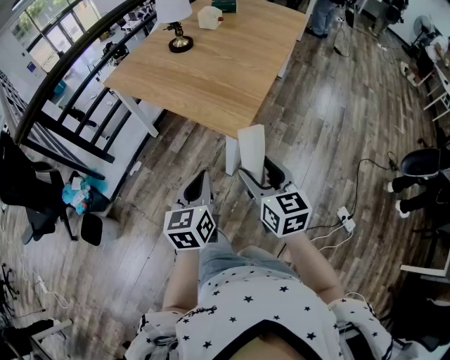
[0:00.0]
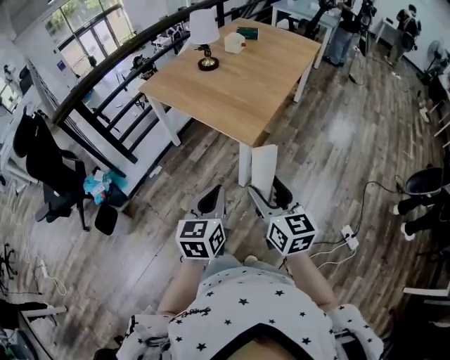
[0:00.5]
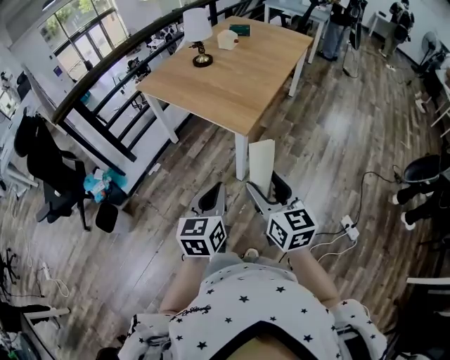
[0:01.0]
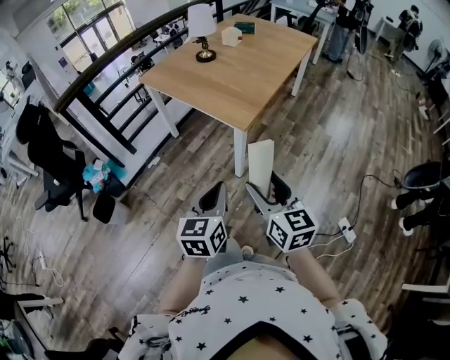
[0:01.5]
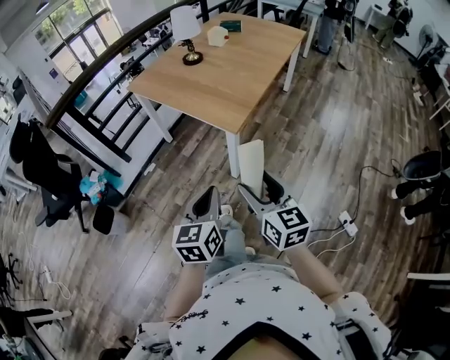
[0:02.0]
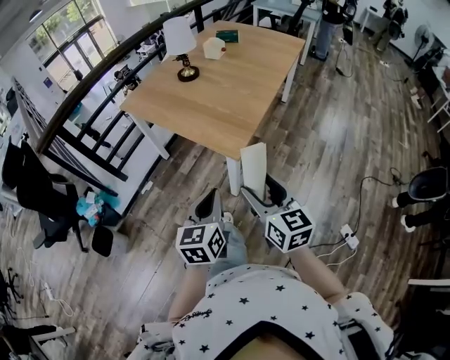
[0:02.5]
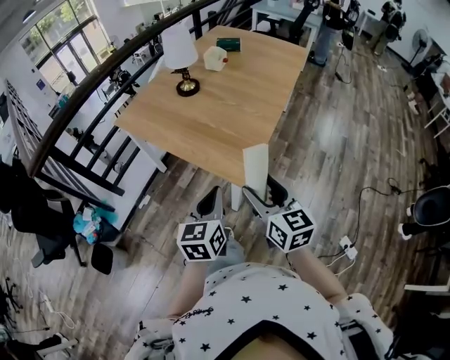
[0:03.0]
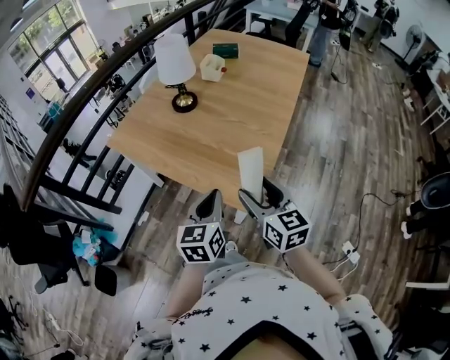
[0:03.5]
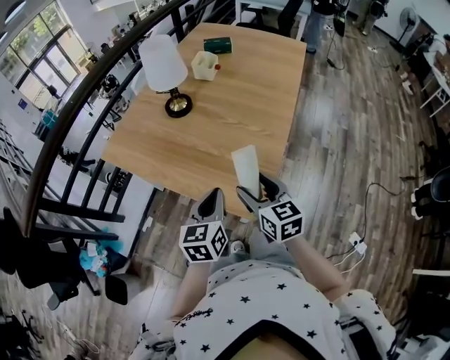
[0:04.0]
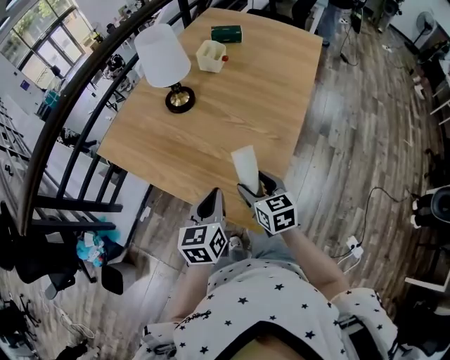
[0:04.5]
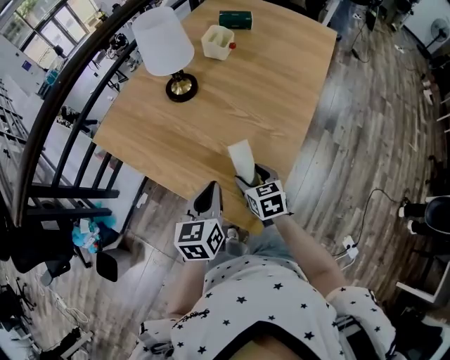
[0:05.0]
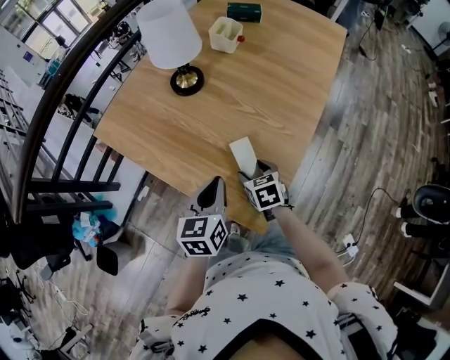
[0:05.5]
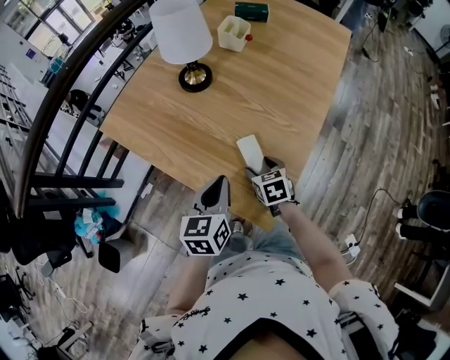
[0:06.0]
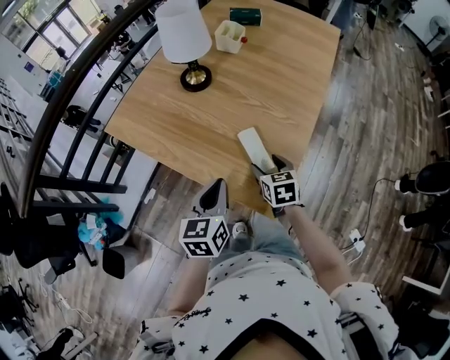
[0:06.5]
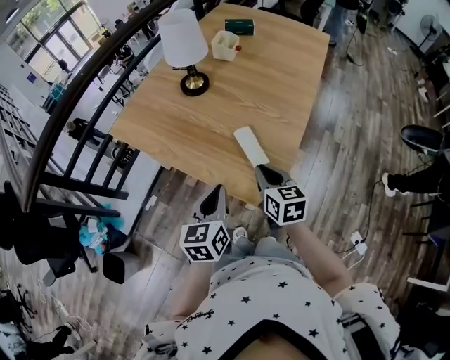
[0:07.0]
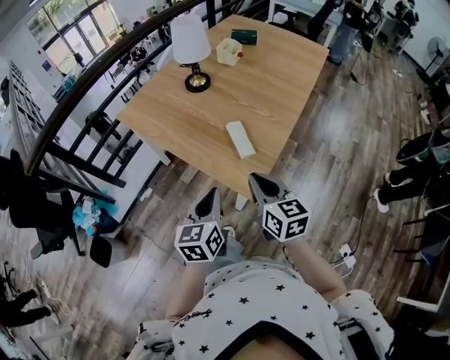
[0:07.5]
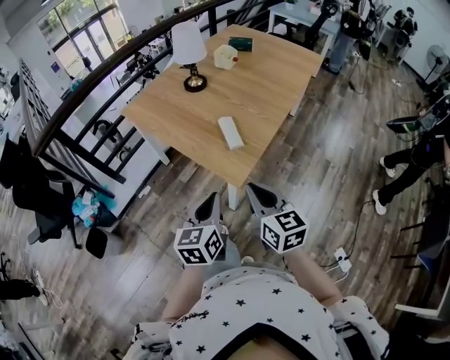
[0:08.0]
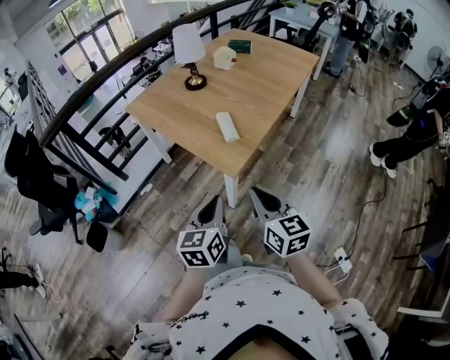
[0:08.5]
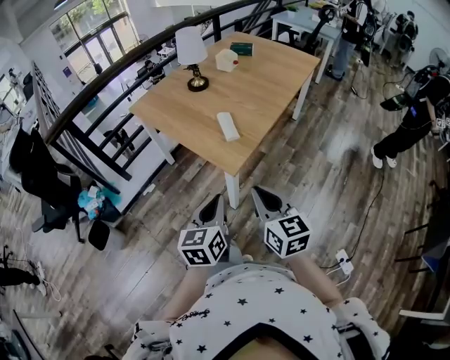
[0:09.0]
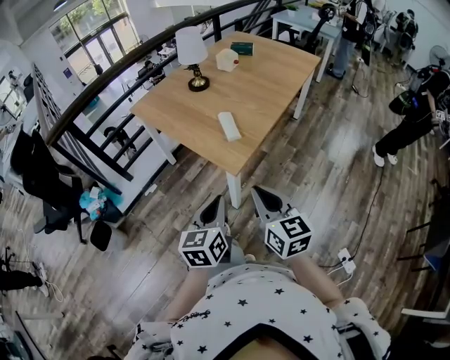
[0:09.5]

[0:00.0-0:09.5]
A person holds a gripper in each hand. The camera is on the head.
0.0 to 2.0 s: The grippers both shift backward and upward by approximately 20 cm.
2.0 to 4.0 s: Both grippers are carried forward, some 40 cm.
4.0 to 5.5 s: The right gripper heads downward and forward, covering approximately 20 cm, and swivels roughly 30 degrees. Meanwhile the left gripper heads forward and downward, covering some 10 cm.
5.5 to 7.5 s: The right gripper moves backward and upward, approximately 30 cm, angles its fingers upward, by approximately 30 degrees, and closes its fingers. The left gripper goes about 20 cm backward.
7.5 to 9.5 s: The two grippers go about 20 cm backward.

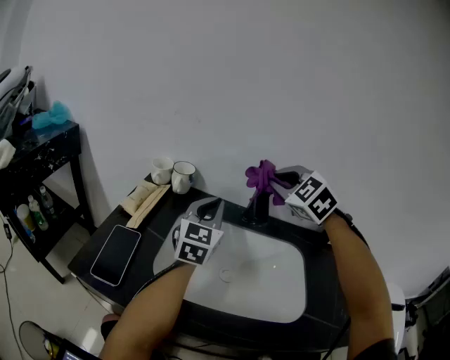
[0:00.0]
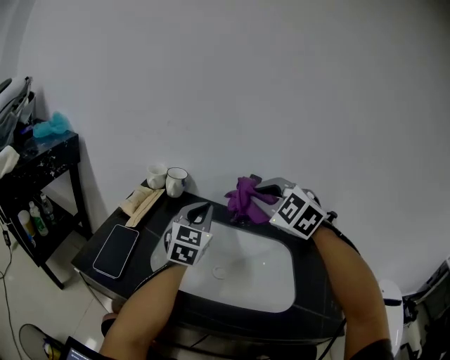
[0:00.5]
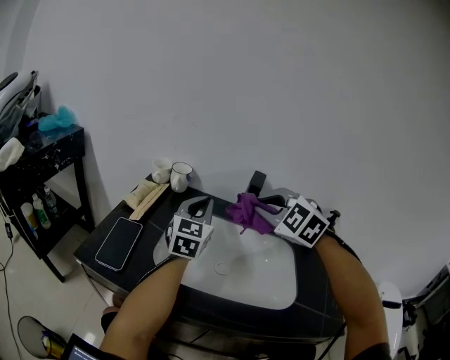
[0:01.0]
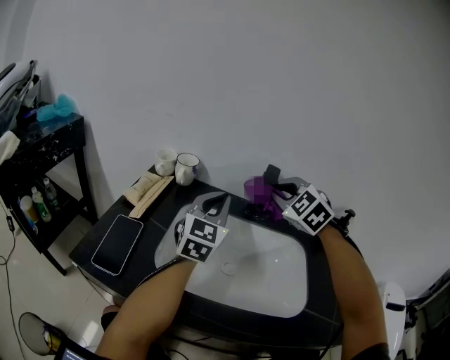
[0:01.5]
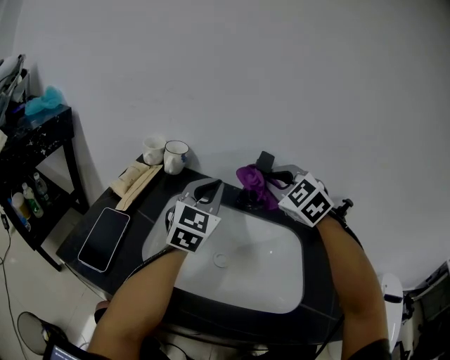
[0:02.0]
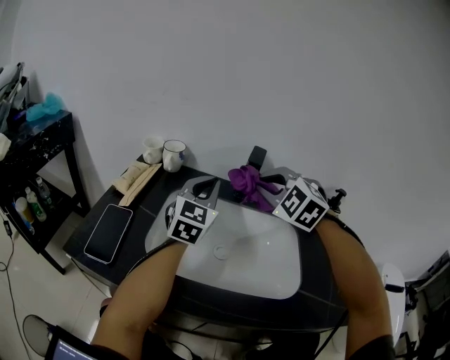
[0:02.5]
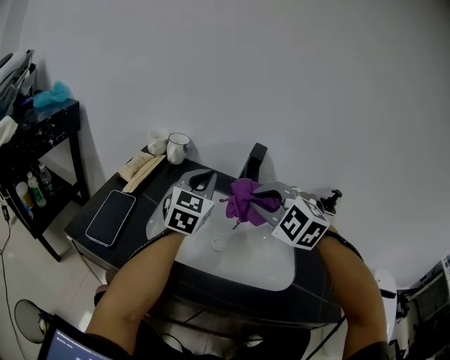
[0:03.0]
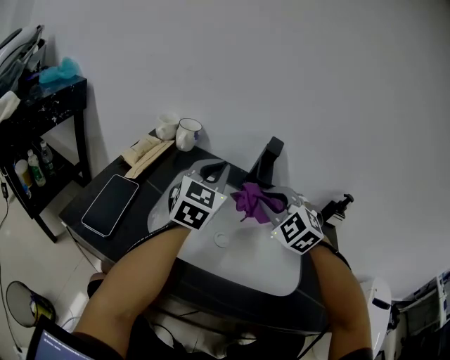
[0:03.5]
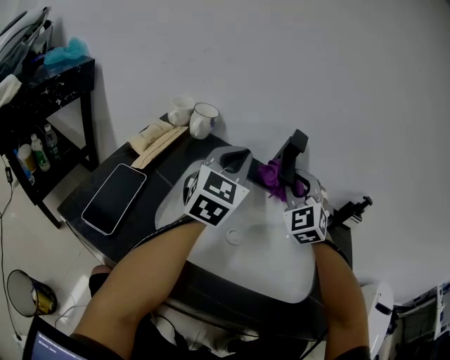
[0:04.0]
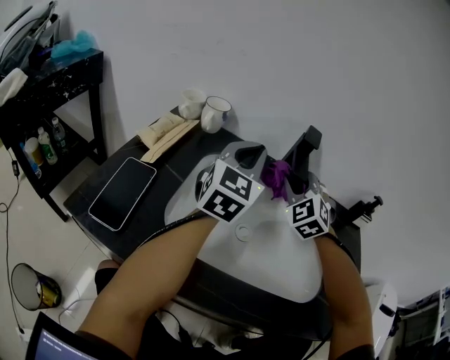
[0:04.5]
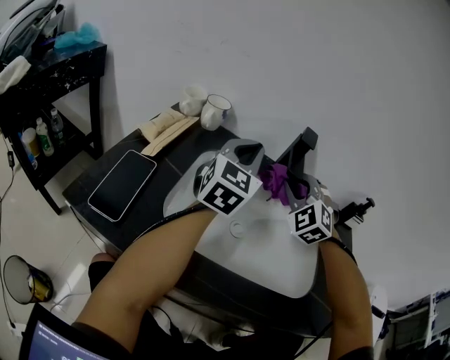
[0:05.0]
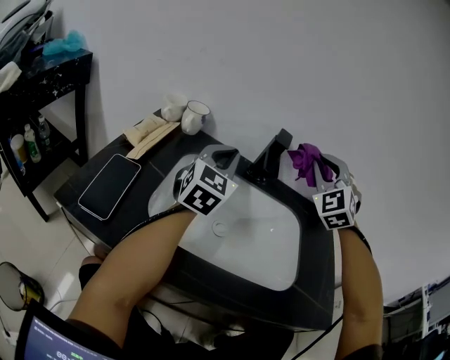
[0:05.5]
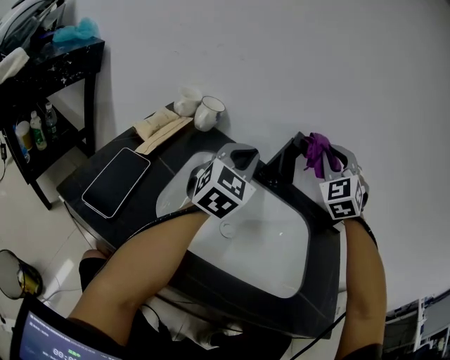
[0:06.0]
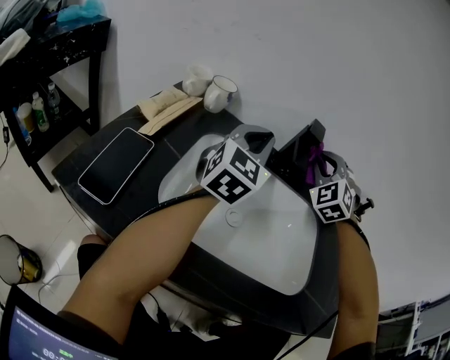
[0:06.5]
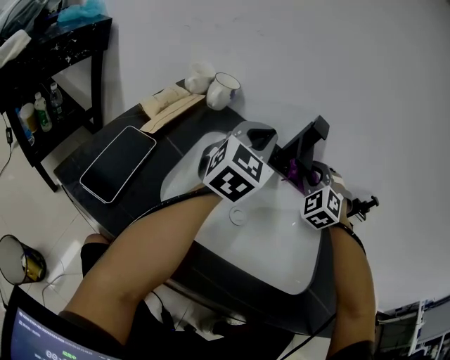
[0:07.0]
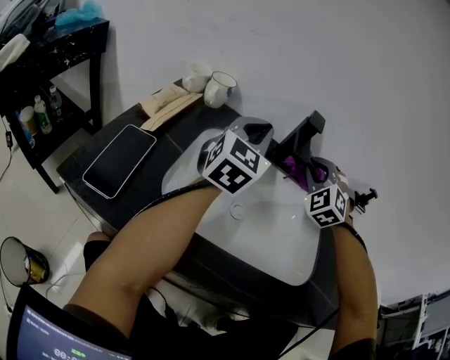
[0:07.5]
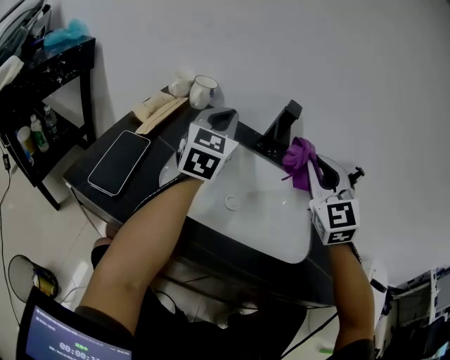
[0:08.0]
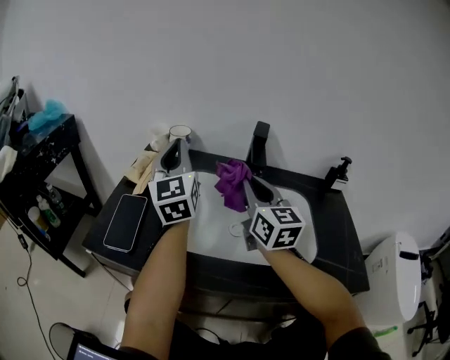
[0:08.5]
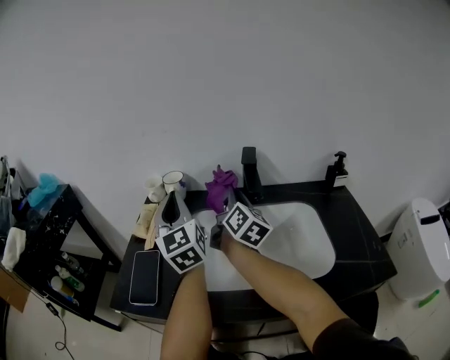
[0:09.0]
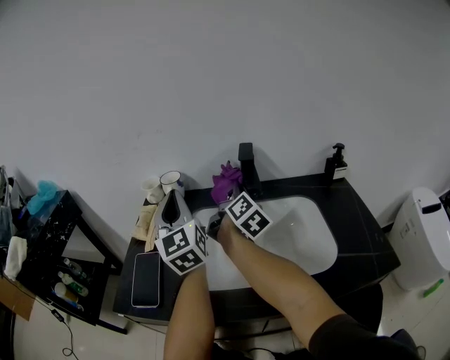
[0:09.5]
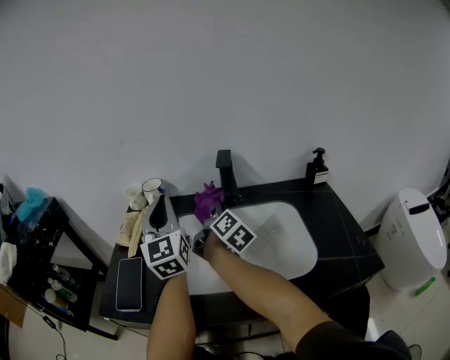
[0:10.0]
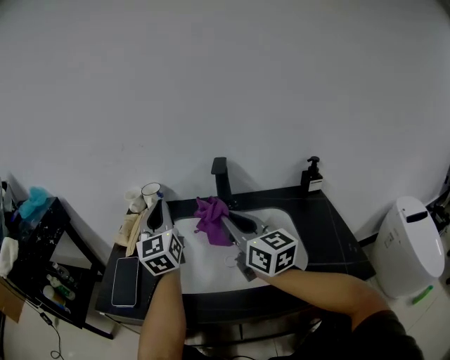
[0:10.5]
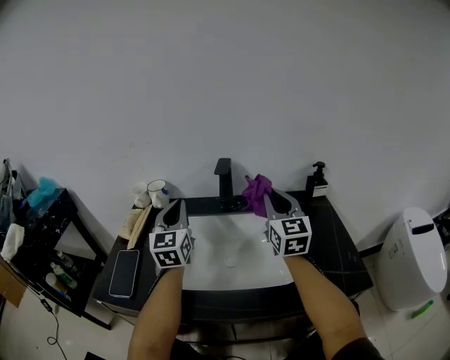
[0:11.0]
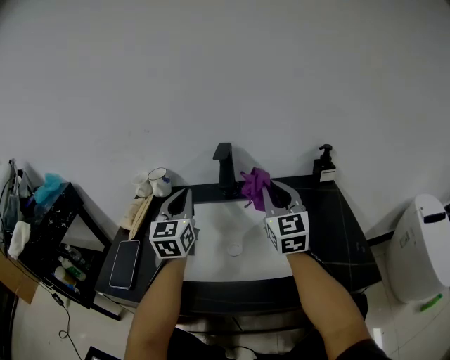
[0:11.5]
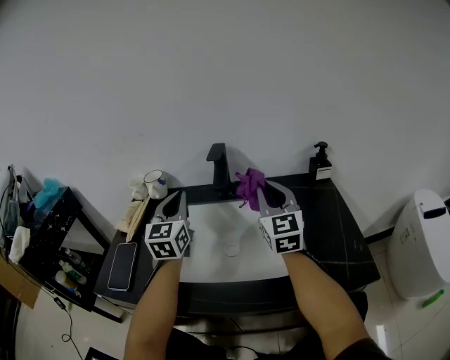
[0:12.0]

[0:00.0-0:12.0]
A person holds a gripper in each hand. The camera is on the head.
0.0 to 2.0 s: The right gripper shifts about 5 cm downward, and travels backward and back again, approximately 10 cm each way.
2.0 to 4.0 s: The right gripper shifts roughly 5 cm downward, reaches approximately 15 cm backward, then returns, and changes its angle by some 20 degrees.
4.0 to 6.0 s: The right gripper moves upward, some 10 cm.
6.0 to 8.0 s: The right gripper shifts some 15 cm backward, goes downward and returns, some 15 cm each way, and swivels some 30 degrees. Meanwhile the left gripper goes approximately 5 cm to the left.
8.0 to 10.0 s: The left gripper ends up roughly 5 cm from where it was. Meanwhile the right gripper heads downward, forward and to the left, covering roughly 15 cm, and twists some 100 degrees clockwise, seen from behind.
10.0 to 12.0 s: The right gripper goes approximately 15 cm to the right, upward and backward, and rotates around the line of its fingers by roughly 70 degrees, counterclockwise from behind, while the left gripper is displaced to the right by about 5 cm.

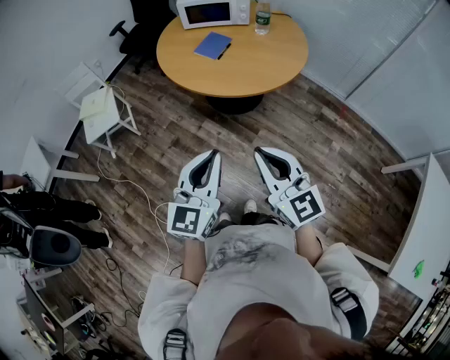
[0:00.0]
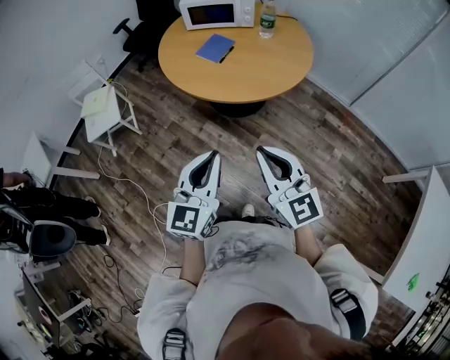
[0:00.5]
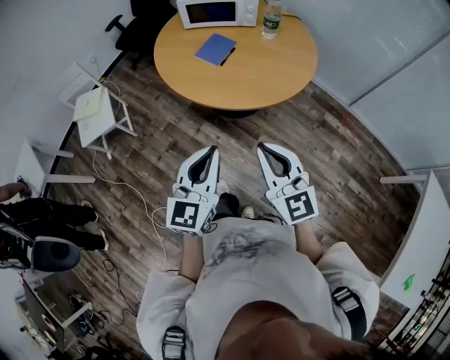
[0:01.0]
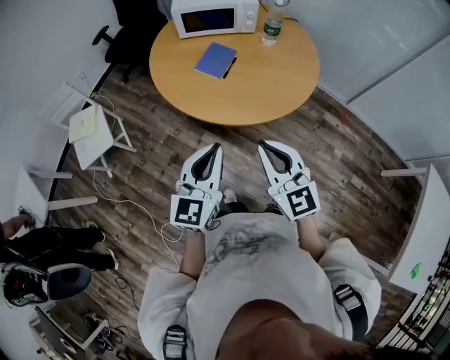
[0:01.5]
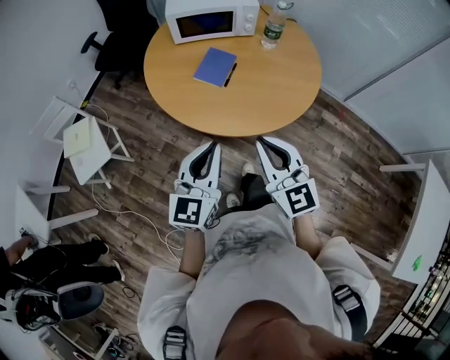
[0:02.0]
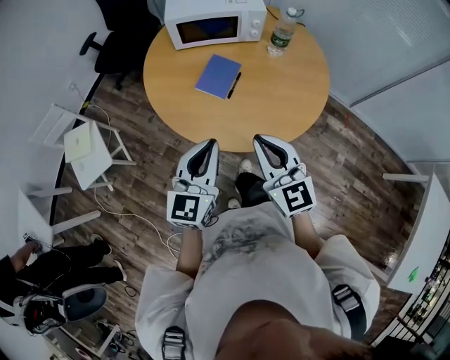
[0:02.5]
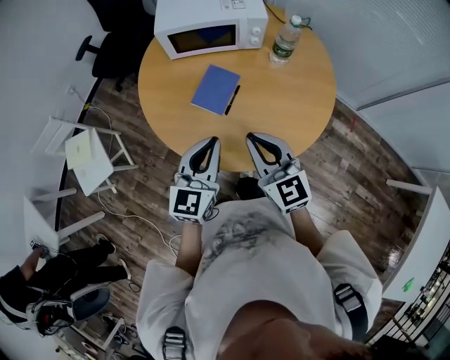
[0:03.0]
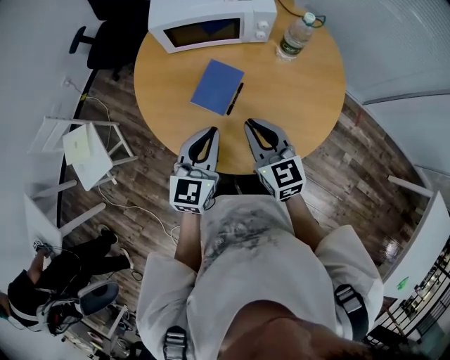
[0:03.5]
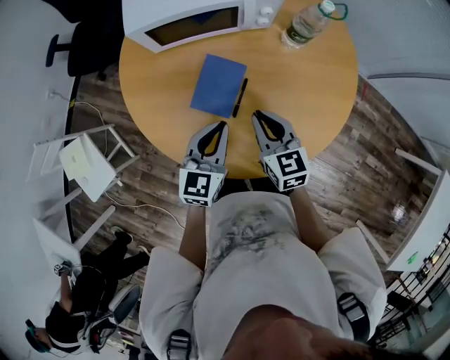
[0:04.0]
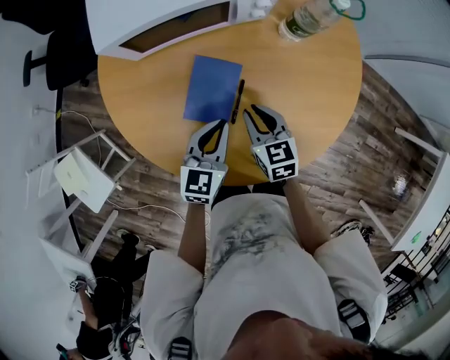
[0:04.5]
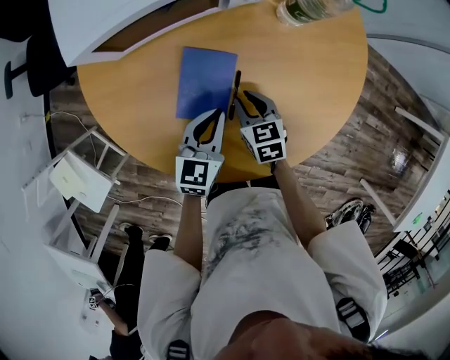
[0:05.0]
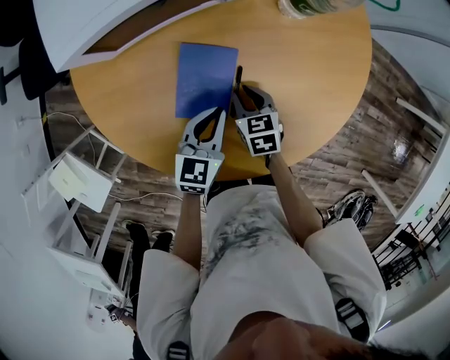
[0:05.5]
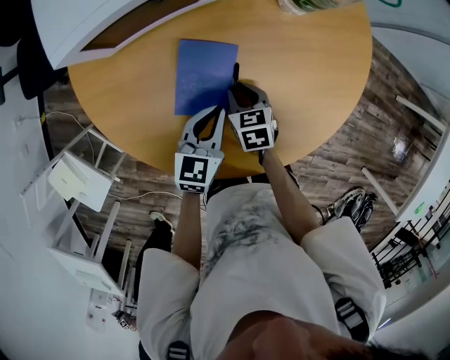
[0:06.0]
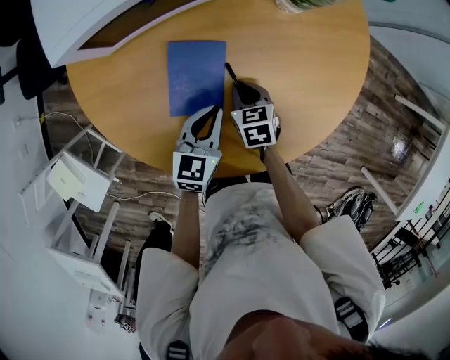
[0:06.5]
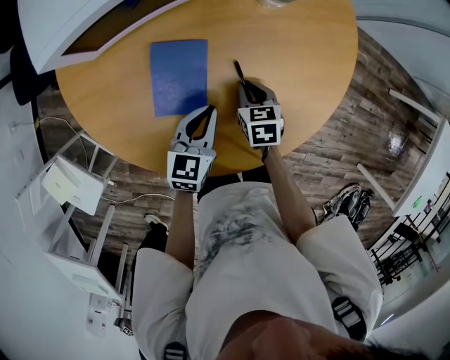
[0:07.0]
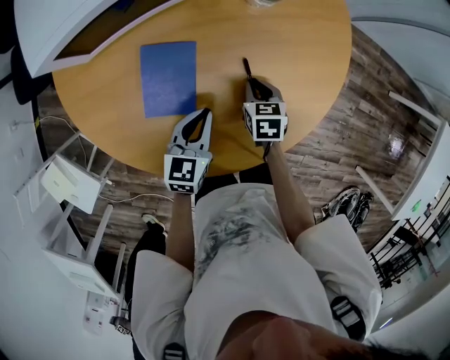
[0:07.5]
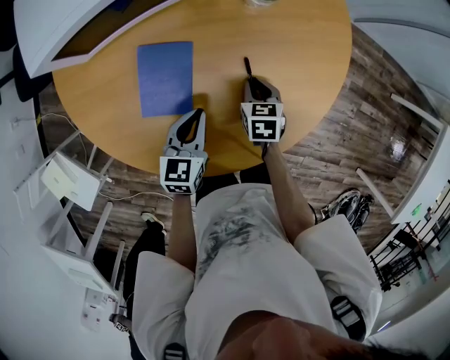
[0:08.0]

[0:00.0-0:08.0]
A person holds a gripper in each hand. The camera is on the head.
0.0 to 2.0 s: Both grippers move forward, roughly 30 cm.
2.0 to 4.0 s: The two grippers go some 40 cm forward and downward. The left gripper turns by roughly 20 degrees; the right gripper turns by about 30 degrees.
4.0 to 6.0 s: The left gripper heads downward, covering about 15 cm; the right gripper travels downward by about 20 cm, and changes its angle by approximately 30 degrees.
6.0 to 8.0 s: The right gripper is displaced to the right by about 15 cm.
